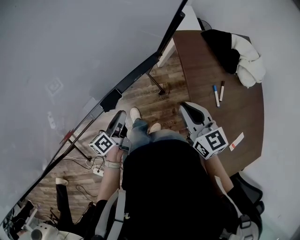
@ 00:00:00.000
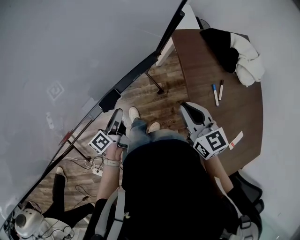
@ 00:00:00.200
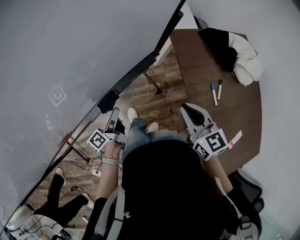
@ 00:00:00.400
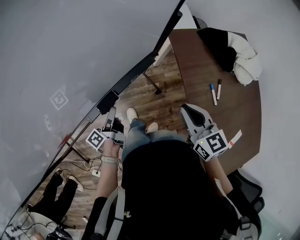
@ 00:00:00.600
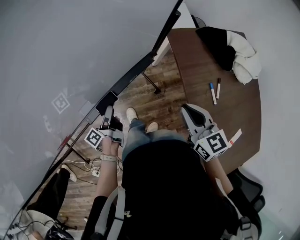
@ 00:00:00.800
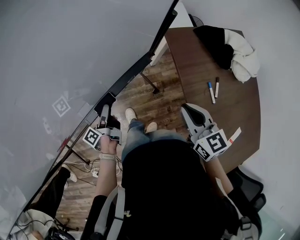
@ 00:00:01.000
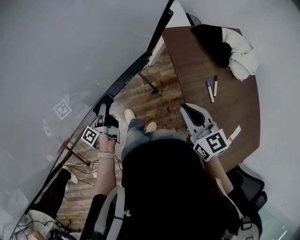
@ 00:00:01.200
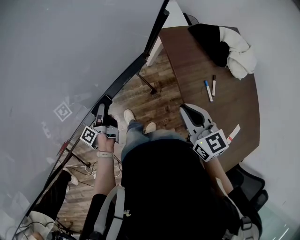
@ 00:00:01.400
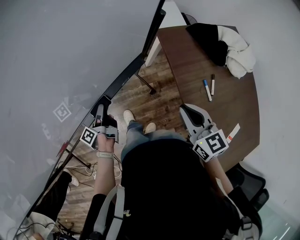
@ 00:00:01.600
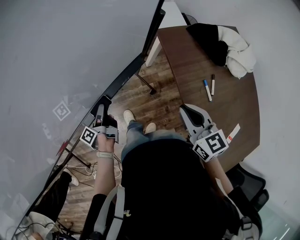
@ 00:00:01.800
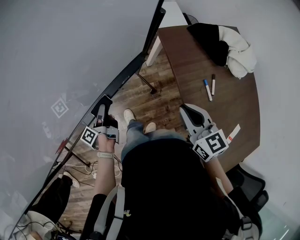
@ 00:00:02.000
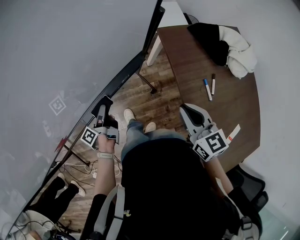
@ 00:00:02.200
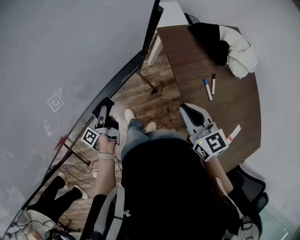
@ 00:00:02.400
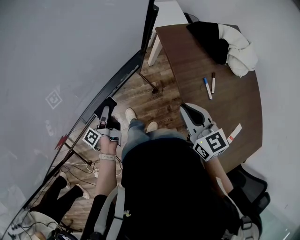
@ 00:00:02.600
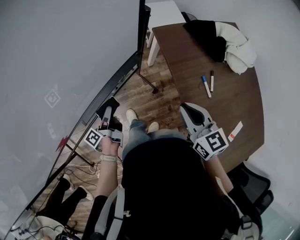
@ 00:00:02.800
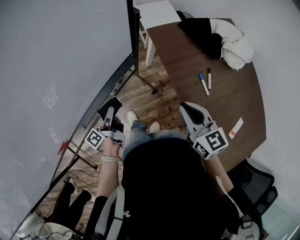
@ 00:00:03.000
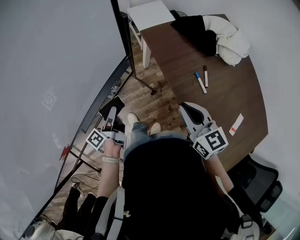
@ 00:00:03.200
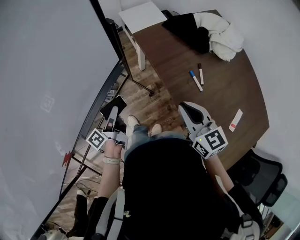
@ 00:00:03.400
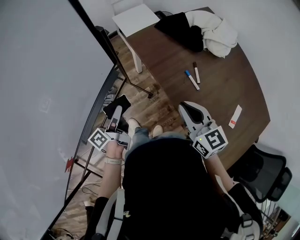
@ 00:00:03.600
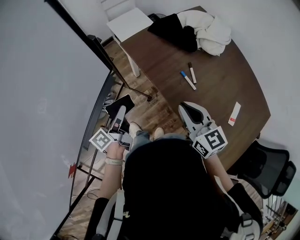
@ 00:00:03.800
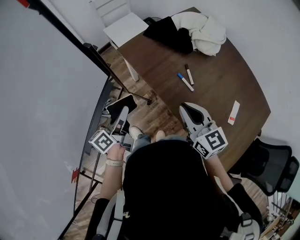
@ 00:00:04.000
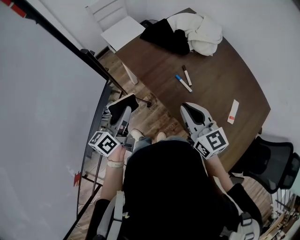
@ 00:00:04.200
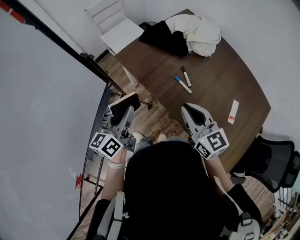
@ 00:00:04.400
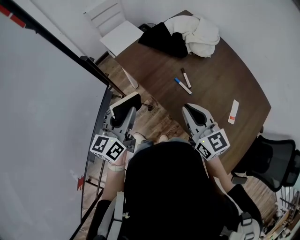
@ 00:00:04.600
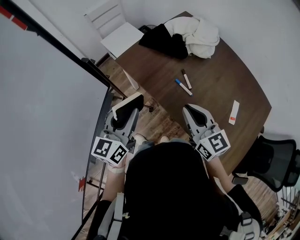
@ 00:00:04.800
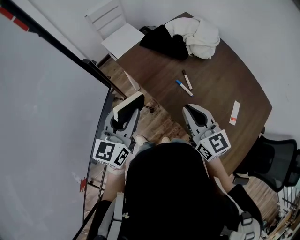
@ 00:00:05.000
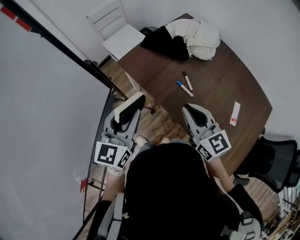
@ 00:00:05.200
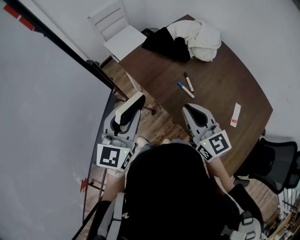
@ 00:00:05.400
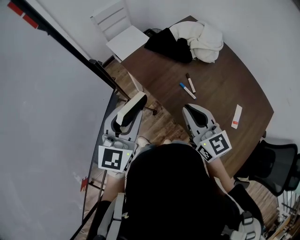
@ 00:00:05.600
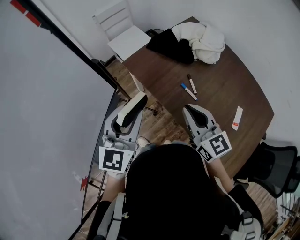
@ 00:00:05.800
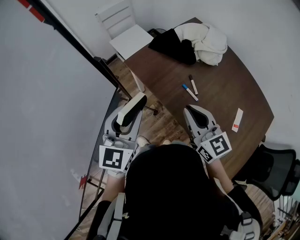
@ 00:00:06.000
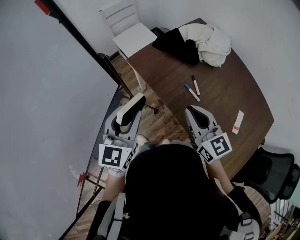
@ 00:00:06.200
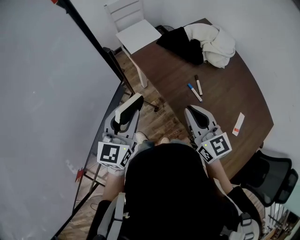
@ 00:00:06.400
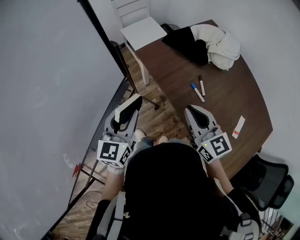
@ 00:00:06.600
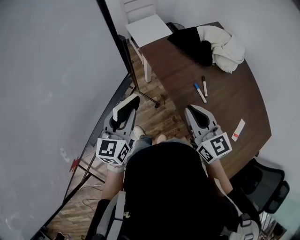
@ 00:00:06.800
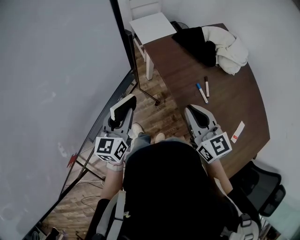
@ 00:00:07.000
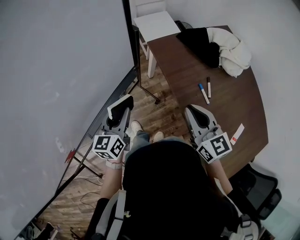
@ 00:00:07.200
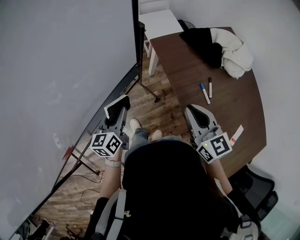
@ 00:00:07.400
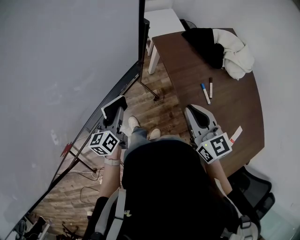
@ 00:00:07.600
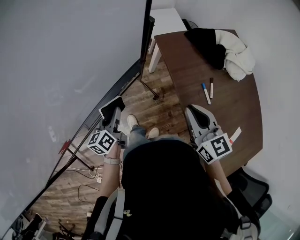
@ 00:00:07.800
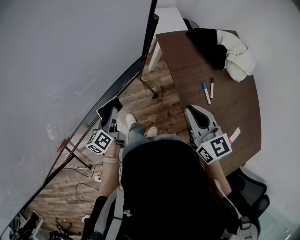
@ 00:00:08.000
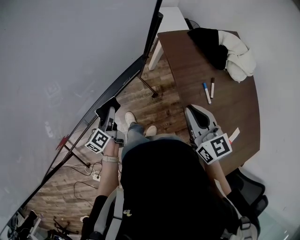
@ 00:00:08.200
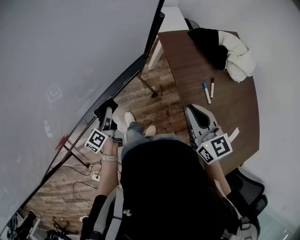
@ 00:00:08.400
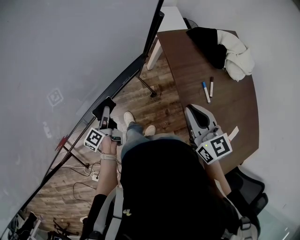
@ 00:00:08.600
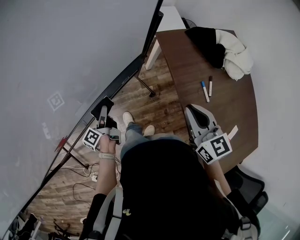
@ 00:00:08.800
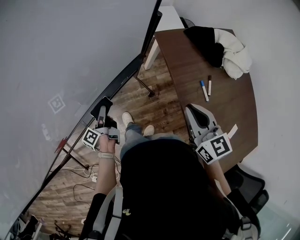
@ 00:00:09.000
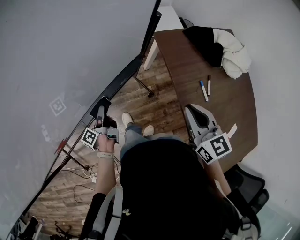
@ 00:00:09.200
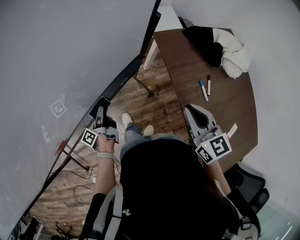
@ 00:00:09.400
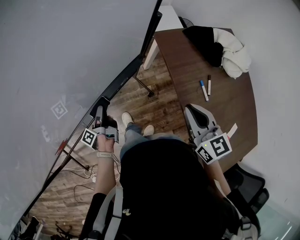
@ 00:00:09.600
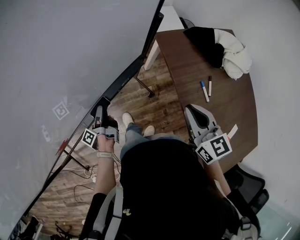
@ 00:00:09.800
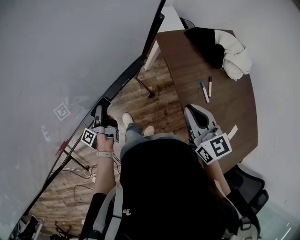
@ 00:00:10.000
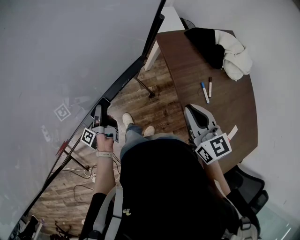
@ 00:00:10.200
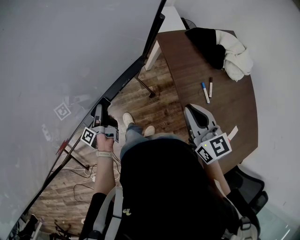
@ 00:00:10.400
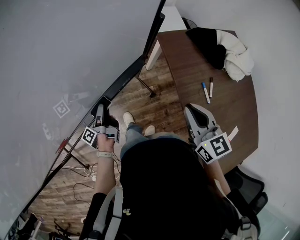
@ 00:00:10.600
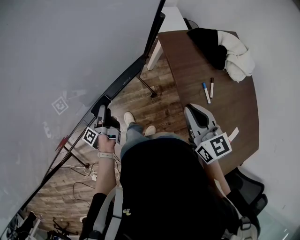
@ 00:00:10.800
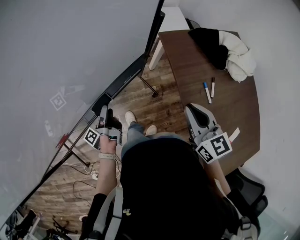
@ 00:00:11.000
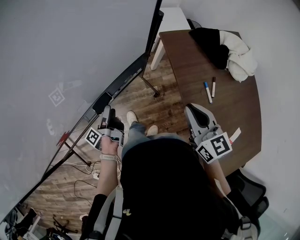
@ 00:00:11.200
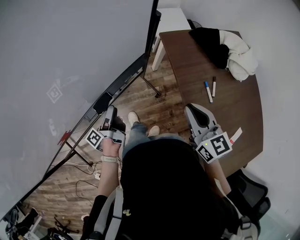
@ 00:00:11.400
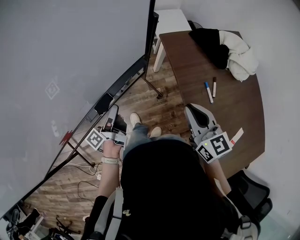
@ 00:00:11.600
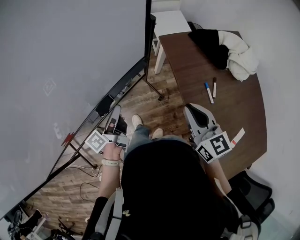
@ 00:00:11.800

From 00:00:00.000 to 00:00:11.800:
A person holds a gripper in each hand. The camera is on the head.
From 00:00:00.000 to 00:00:01.400: The left gripper travels downward and forward by about 10 cm, swivels some 30 degrees, and opens.
From 00:00:01.400 to 00:00:03.000: The right gripper shifts by roughly 5 cm. Meanwhile the left gripper moves to the right and upward, approximately 10 cm.
From 00:00:03.000 to 00:00:04.400: The right gripper changes place by approximately 15 cm, and rotates some 20 degrees; the left gripper moves approximately 30 cm, and rolls clockwise, seen from behind, by some 50 degrees.
From 00:00:04.400 to 00:00:06.000: The left gripper goes roughly 10 cm upward, and twists approximately 40 degrees clockwise, seen from behind.
From 00:00:06.000 to 00:00:07.400: The left gripper is displaced downward and to the left by approximately 25 cm, and swivels about 40 degrees. The right gripper shifts about 10 cm to the left.
From 00:00:07.400 to 00:00:08.800: The left gripper shifts approximately 20 cm downward and to the left, and rotates around the line of its fingers by approximately 50 degrees, counterclockwise from behind.
From 00:00:08.800 to 00:00:10.400: The left gripper turns by about 20 degrees, and opens.
From 00:00:10.400 to 00:00:11.800: The left gripper is displaced upward and to the right by roughly 20 cm, changes its angle by approximately 30 degrees, and closes up.

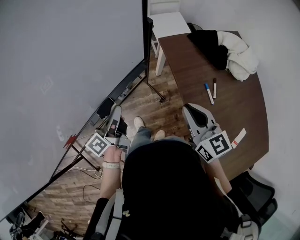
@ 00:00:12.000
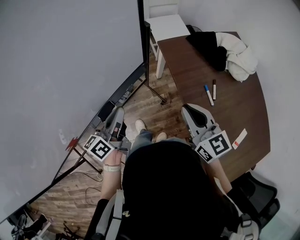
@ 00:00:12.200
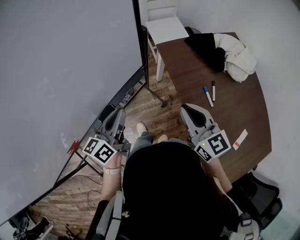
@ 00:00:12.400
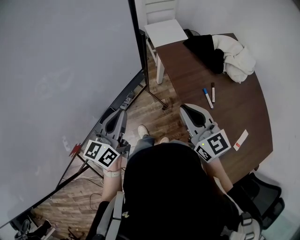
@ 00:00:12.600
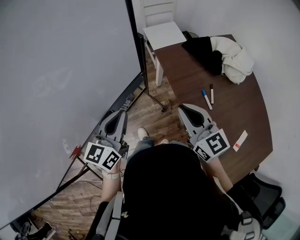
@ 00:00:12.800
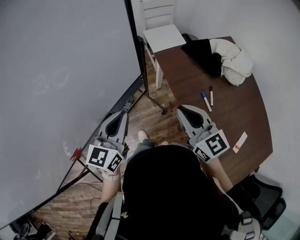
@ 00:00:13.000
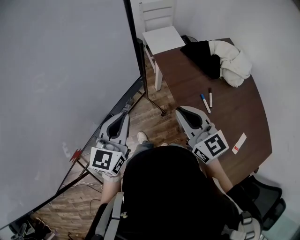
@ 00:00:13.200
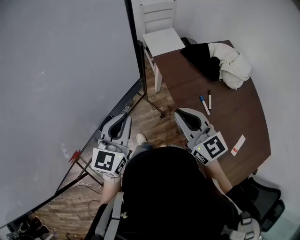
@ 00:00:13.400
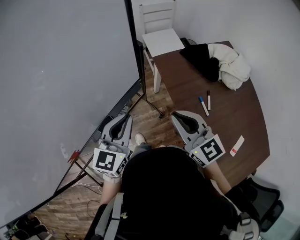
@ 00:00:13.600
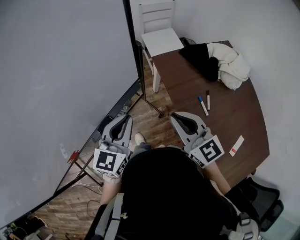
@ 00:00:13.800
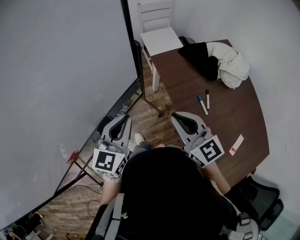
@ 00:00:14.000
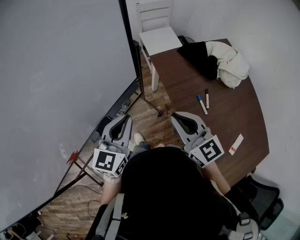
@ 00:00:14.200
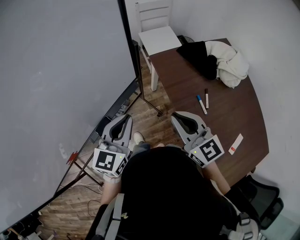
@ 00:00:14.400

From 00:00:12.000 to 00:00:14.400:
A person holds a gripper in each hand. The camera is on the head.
From 00:00:12.000 to 00:00:13.200: The left gripper goes roughly 15 cm upward and to the right, and twists roughly 60 degrees clockwise, seen from behind. Meanwhile the right gripper moves roughly 5 cm.
From 00:00:13.200 to 00:00:14.400: The grippers stay close to where they were, moving slightly.

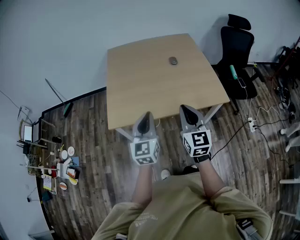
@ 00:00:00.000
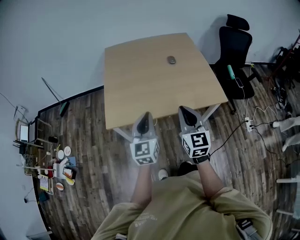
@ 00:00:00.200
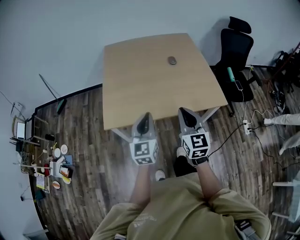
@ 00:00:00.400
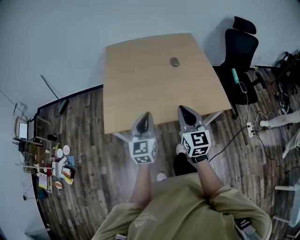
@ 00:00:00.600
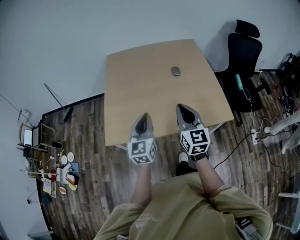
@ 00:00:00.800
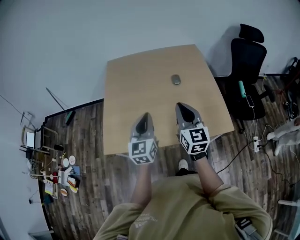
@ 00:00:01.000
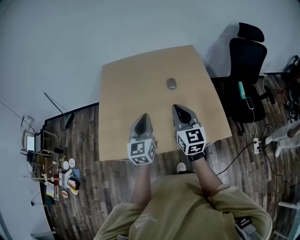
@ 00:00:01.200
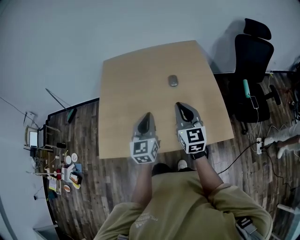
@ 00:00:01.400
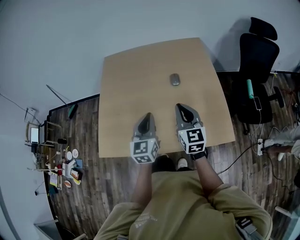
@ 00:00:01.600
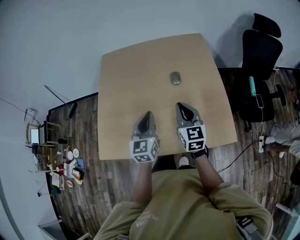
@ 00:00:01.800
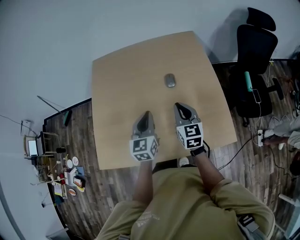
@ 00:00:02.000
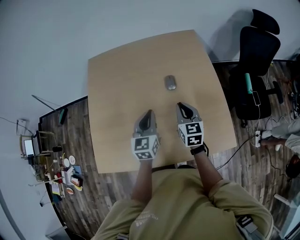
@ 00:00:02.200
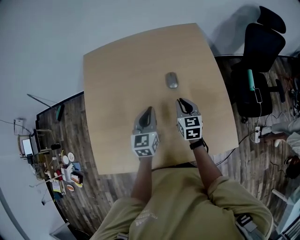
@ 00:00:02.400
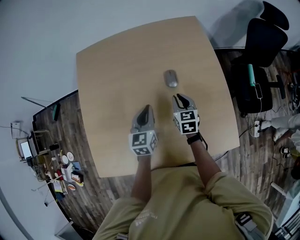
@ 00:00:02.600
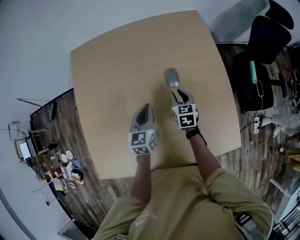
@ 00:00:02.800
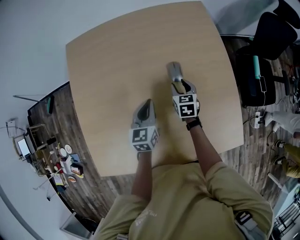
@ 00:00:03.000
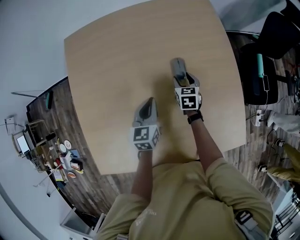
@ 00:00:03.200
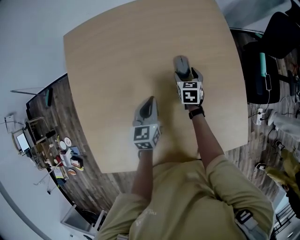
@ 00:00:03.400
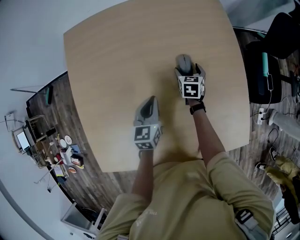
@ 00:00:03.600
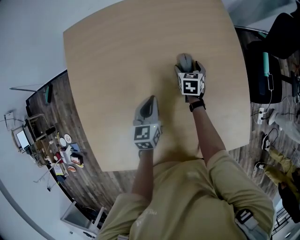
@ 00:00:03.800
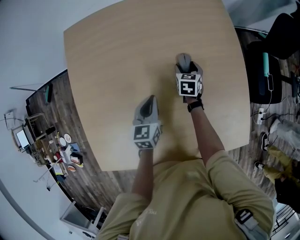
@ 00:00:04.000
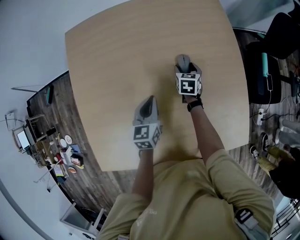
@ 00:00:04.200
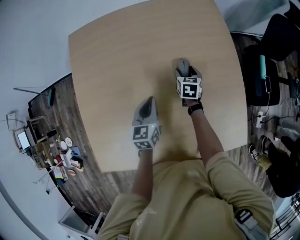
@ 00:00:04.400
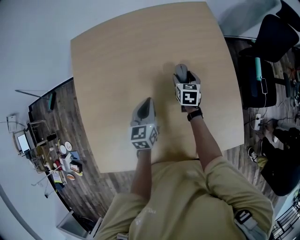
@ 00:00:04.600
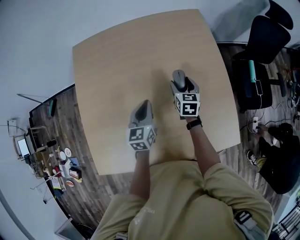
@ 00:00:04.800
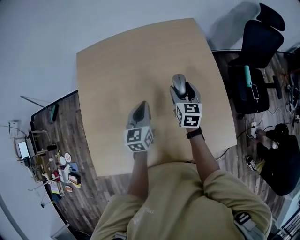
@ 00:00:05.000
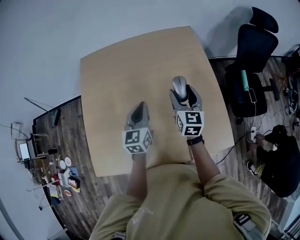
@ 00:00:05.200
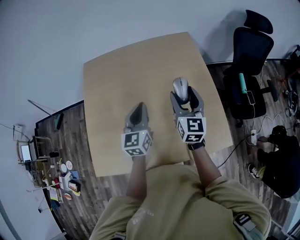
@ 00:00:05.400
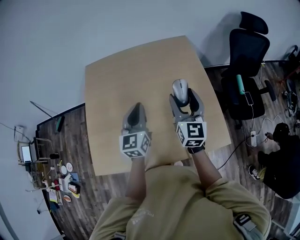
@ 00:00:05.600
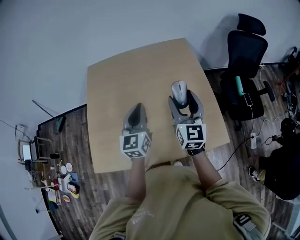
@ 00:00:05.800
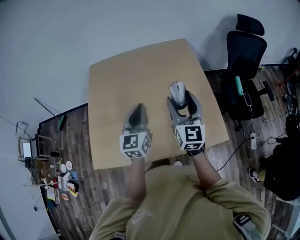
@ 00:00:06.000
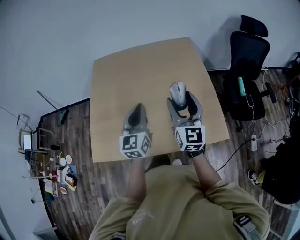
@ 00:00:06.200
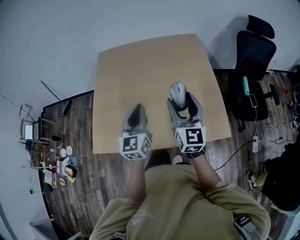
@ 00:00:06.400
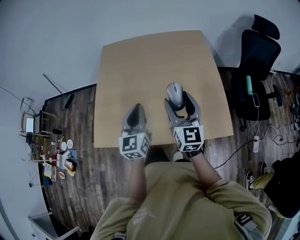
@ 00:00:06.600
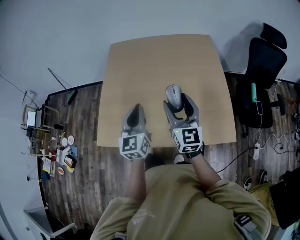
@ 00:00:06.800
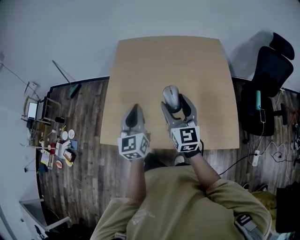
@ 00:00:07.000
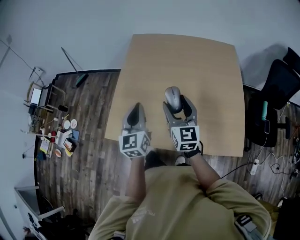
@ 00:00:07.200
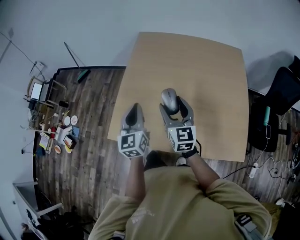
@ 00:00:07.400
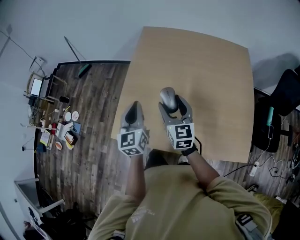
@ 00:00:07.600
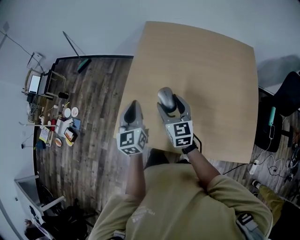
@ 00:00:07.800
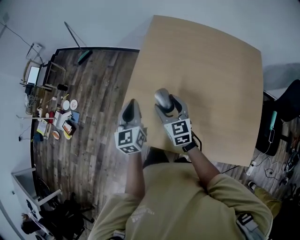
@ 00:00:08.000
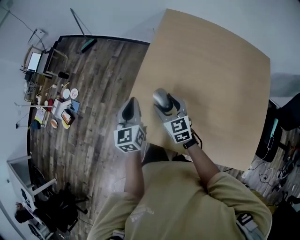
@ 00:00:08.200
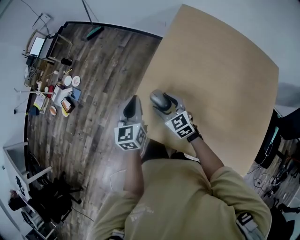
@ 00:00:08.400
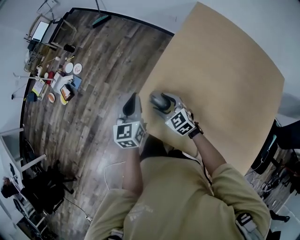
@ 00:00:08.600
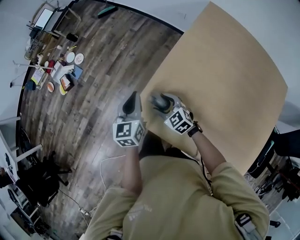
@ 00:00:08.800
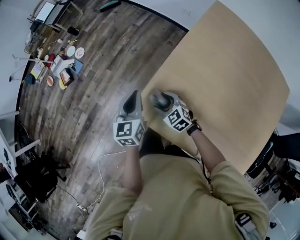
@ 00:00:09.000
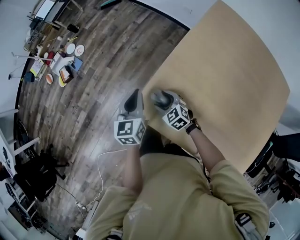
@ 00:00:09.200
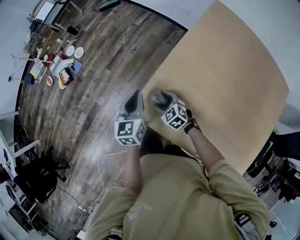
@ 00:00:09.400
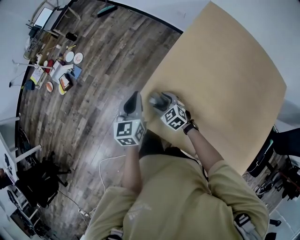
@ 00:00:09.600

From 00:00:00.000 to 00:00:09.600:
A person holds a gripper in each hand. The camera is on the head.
From 00:00:00.000 to 00:00:01.600: The right gripper moves forward, roughly 35 cm; the left gripper goes roughly 35 cm forward and to the right.
From 00:00:01.600 to 00:00:03.200: Both grippers move forward and downward, some 40 cm. The right gripper angles its fingers downward, by some 40 degrees, and opens. The left gripper turns by some 20 degrees.
From 00:00:03.200 to 00:00:04.800: The left gripper travels upward by approximately 5 cm. Meanwhile the right gripper moves upward, approximately 10 cm.
From 00:00:04.800 to 00:00:06.400: Both grippers move backward and upward, approximately 35 cm. The left gripper changes its angle by some 20 degrees. The right gripper points its fingers roughly 40 degrees further upward.
From 00:00:06.400 to 00:00:08.000: The left gripper changes place by about 40 cm, and changes its angle by about 30 degrees, while the right gripper ends up some 40 cm from where it was, and rotates roughly 40 degrees.
From 00:00:08.000 to 00:00:09.600: The left gripper shifts by about 20 cm, while the right gripper heads downward, covering about 20 cm, and turns by about 50 degrees.
